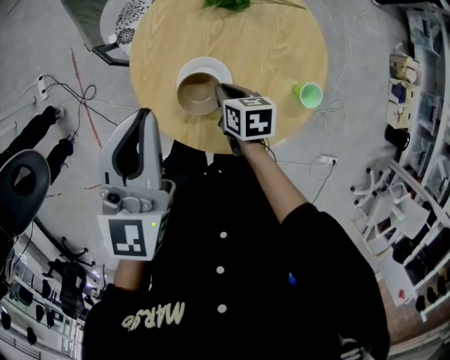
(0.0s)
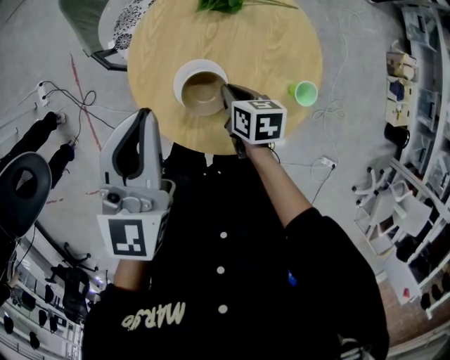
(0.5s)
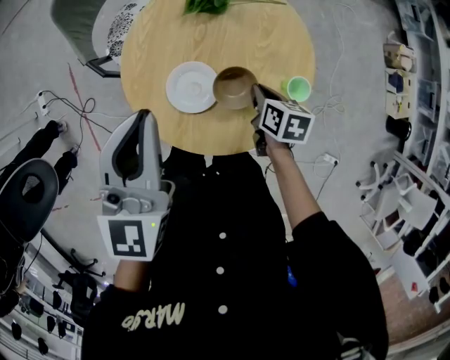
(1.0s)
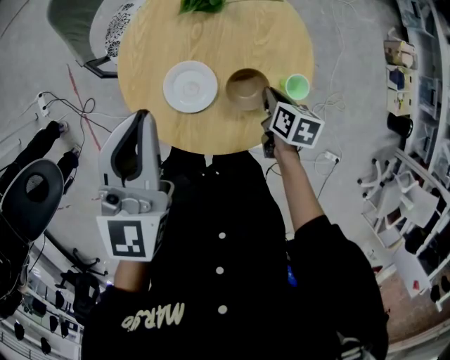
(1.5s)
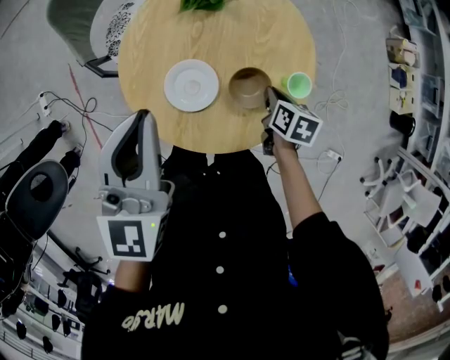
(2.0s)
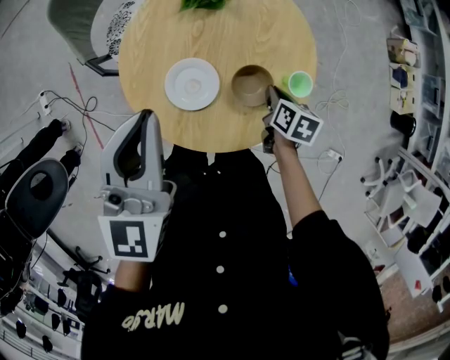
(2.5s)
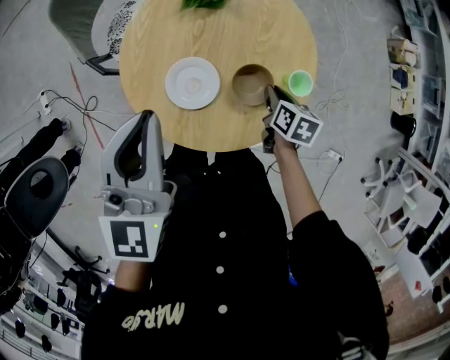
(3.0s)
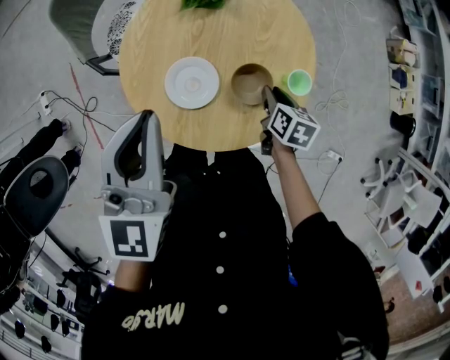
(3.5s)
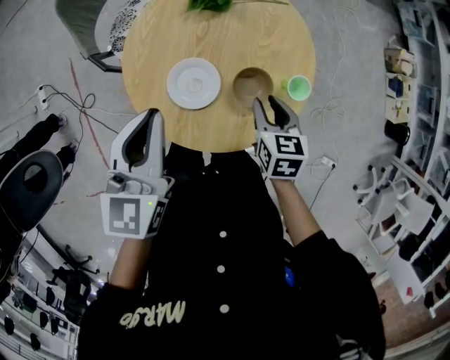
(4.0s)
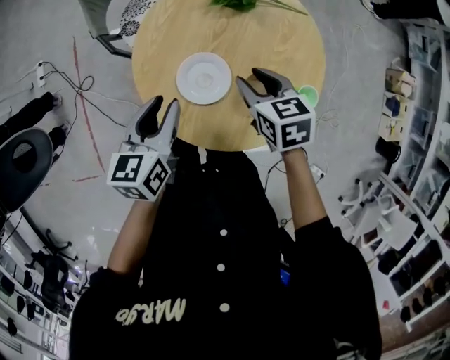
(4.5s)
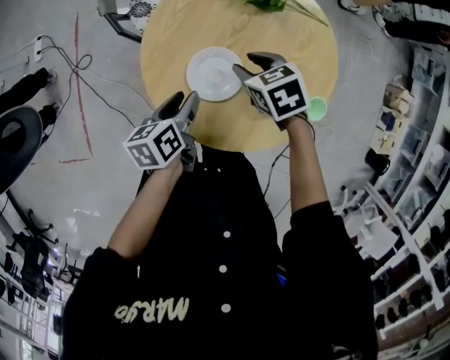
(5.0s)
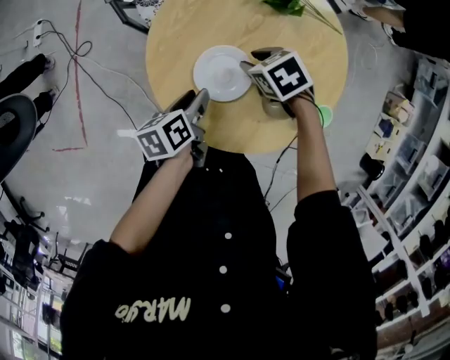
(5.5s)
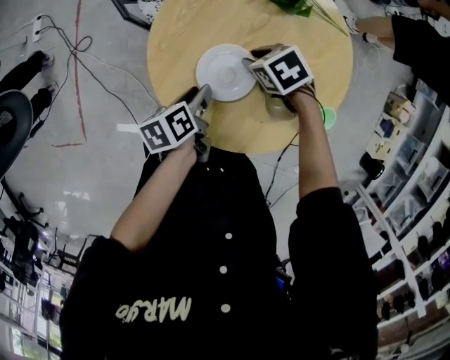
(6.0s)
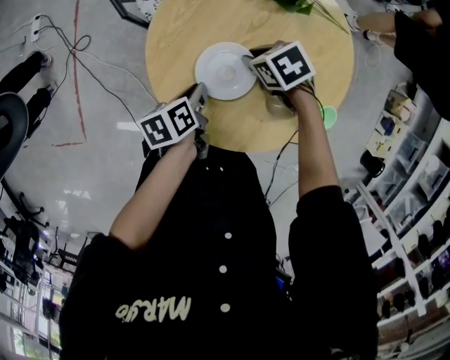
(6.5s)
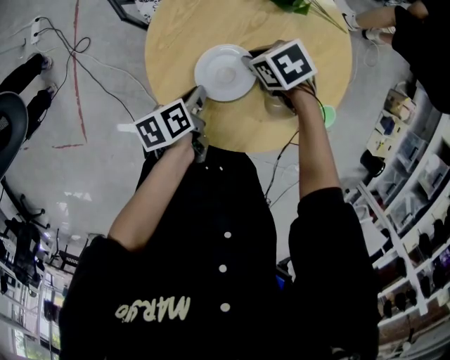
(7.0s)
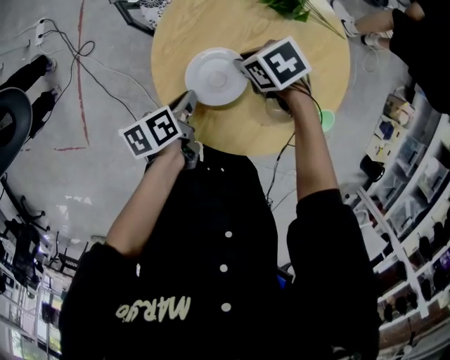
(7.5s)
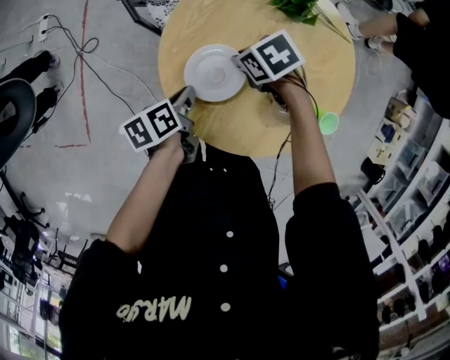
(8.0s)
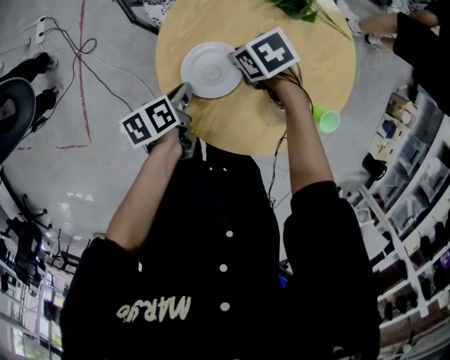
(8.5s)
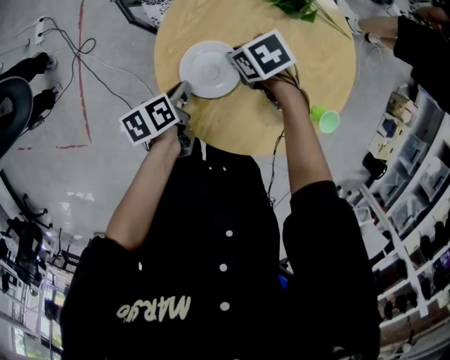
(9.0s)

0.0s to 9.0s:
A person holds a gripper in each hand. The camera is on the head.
0.0s to 2.0s: The right gripper is displaced to the right by about 20 cm, and turns by some 20 degrees.
2.0s to 4.5s: The left gripper shifts roughly 15 cm downward, rotates some 40 degrees, and opens its fingers; the right gripper goes approximately 15 cm to the left and upward, twists some 40 degrees counterclockwise, seen from behind, and opens up.
4.5s to 7.0s: Both grippers travel together downward, some 15 cm. The right gripper rotates approximately 40 degrees. Meanwhile the left gripper rotates around the line of its fingers by roughly 40 degrees, counterclockwise from behind, and closes up.
7.0s to 9.0s: The right gripper changes place by some 5 cm. The left gripper shifts by some 5 cm.

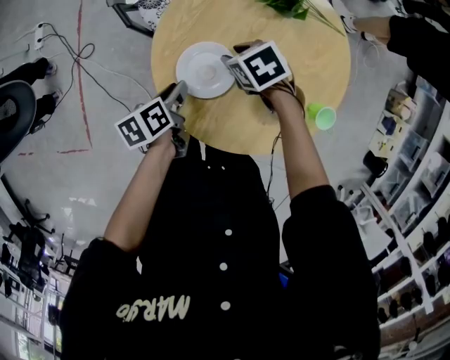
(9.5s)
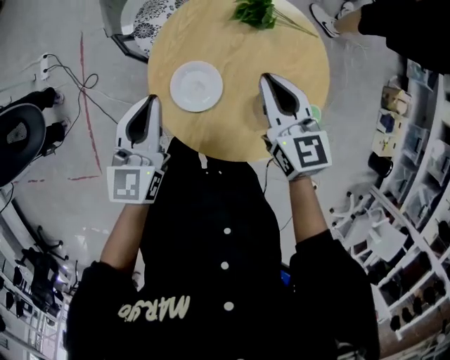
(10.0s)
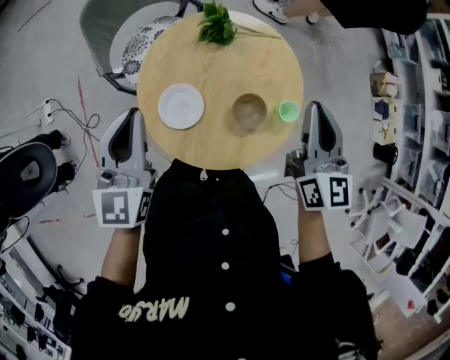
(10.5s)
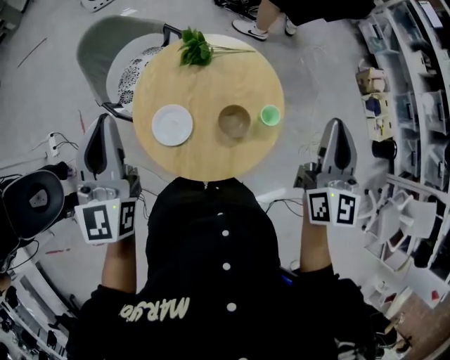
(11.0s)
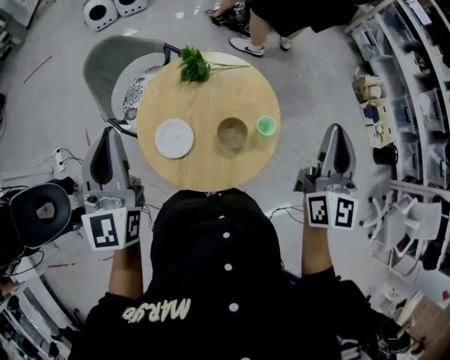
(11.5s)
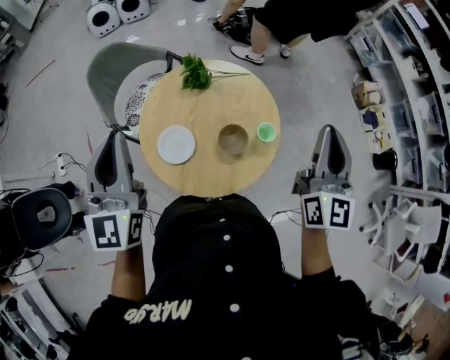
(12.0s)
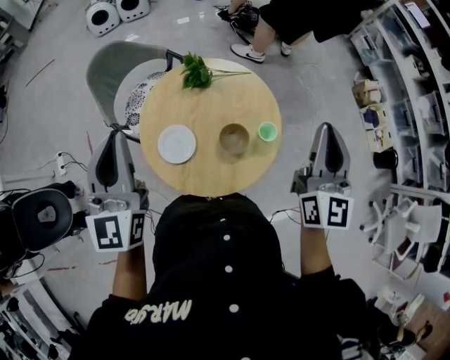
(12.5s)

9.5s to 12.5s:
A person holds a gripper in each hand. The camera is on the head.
9.5s to 11.0s: Both grippers move upward, approximately 50 cm. The left gripper tips its fingers upward by approximately 50 degrees, and closes its fingers; the right gripper tilts its fingers approximately 70 degrees upward, and closes its fingers.
11.0s to 12.5s: The grippers move only a little.

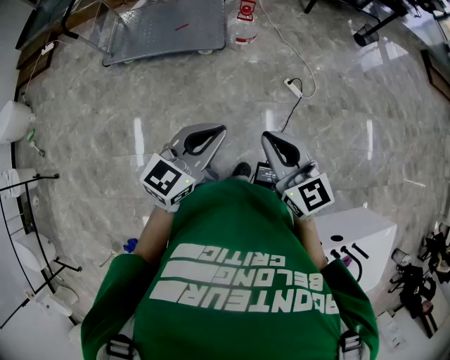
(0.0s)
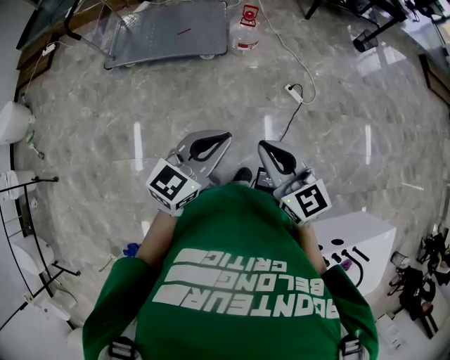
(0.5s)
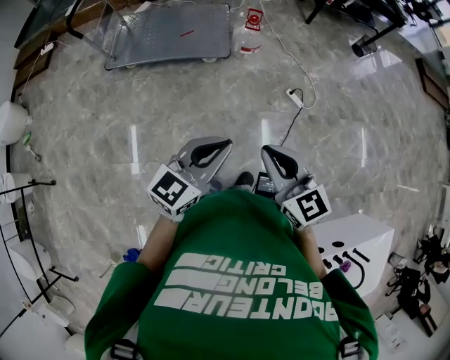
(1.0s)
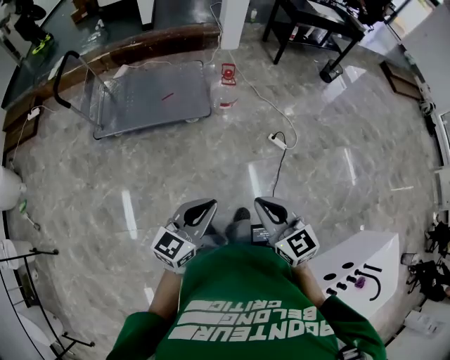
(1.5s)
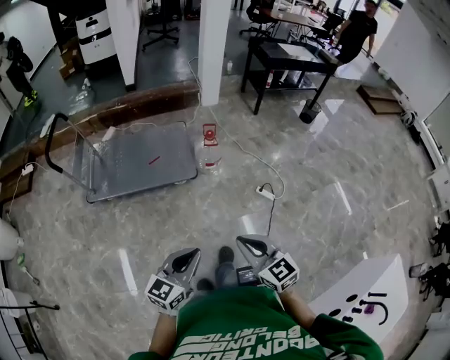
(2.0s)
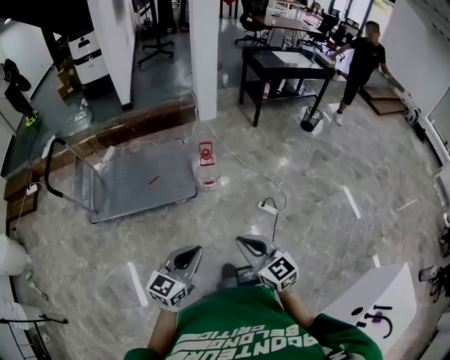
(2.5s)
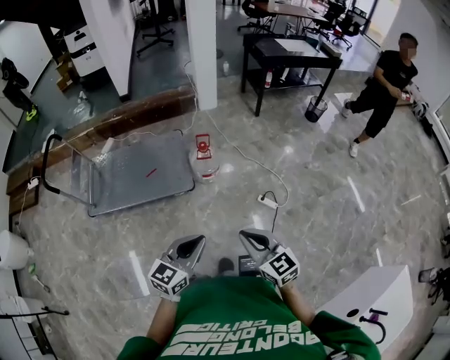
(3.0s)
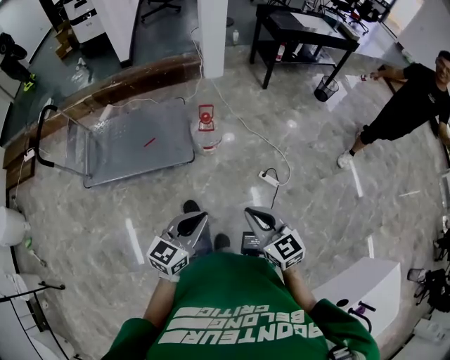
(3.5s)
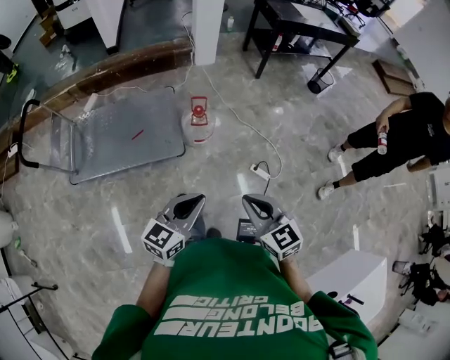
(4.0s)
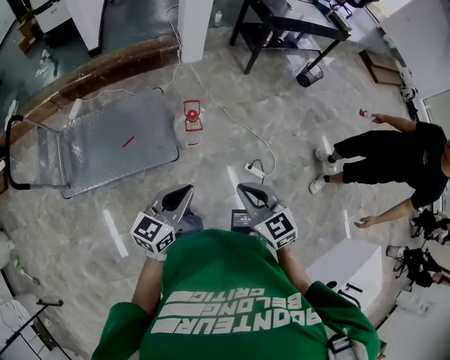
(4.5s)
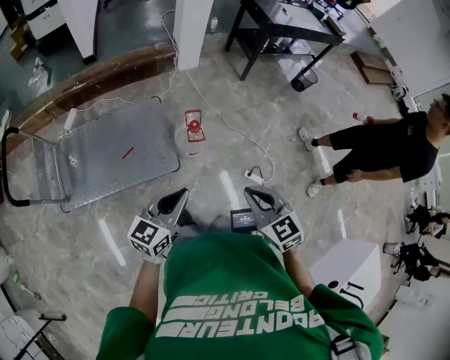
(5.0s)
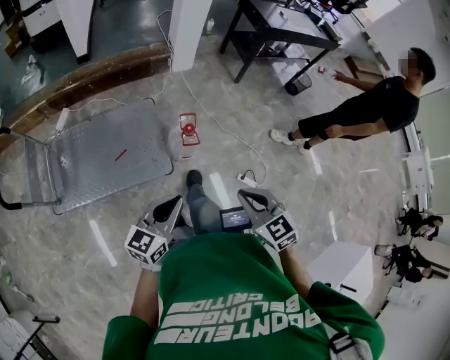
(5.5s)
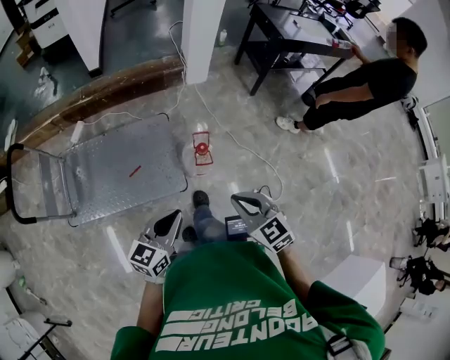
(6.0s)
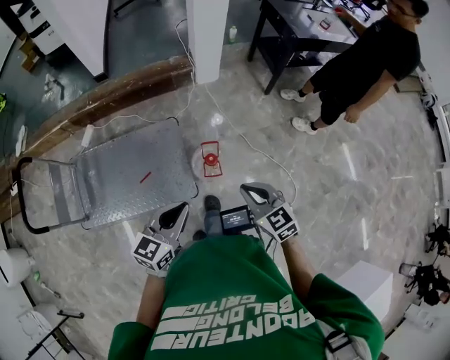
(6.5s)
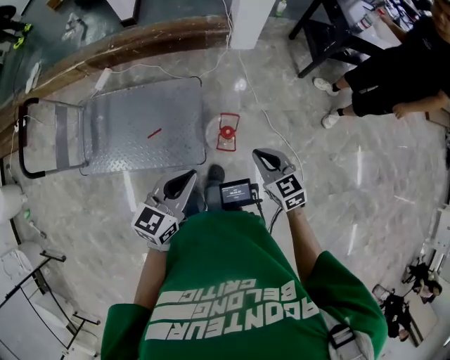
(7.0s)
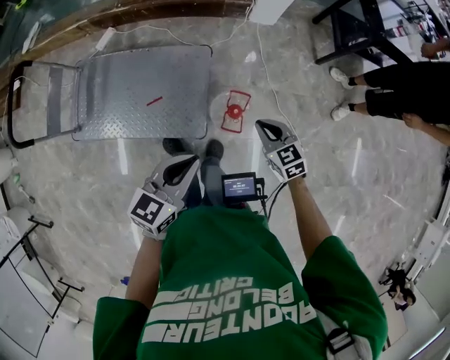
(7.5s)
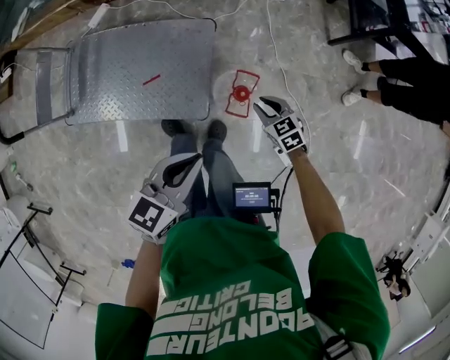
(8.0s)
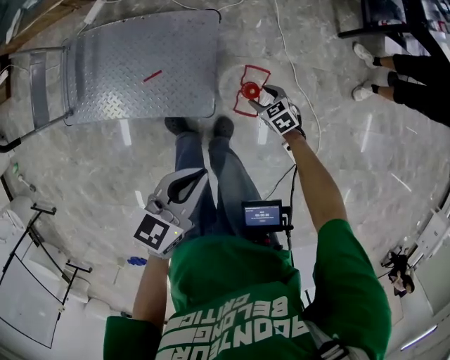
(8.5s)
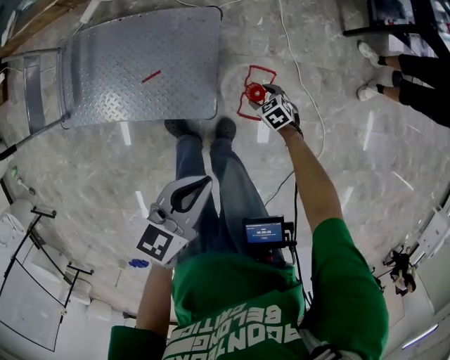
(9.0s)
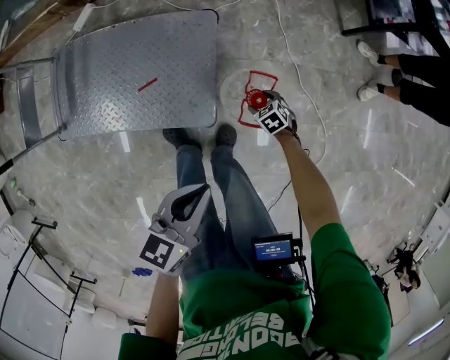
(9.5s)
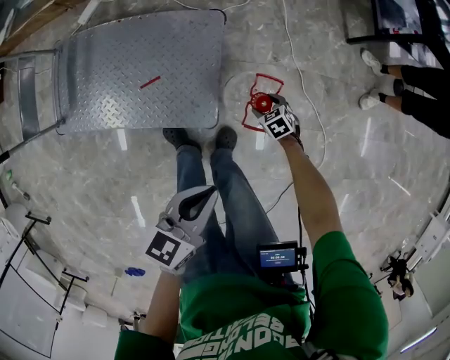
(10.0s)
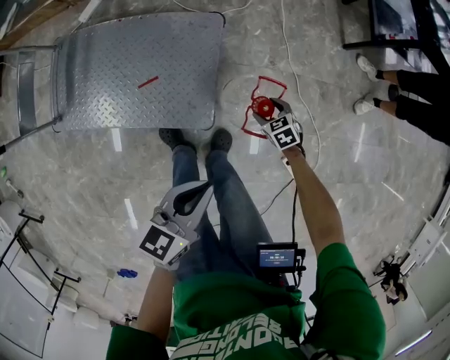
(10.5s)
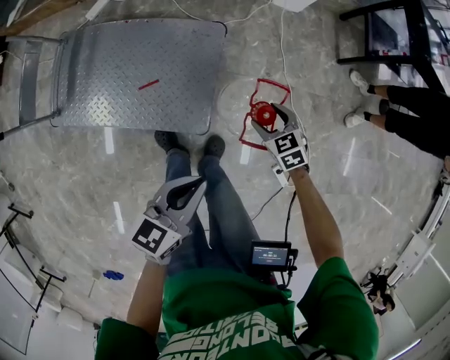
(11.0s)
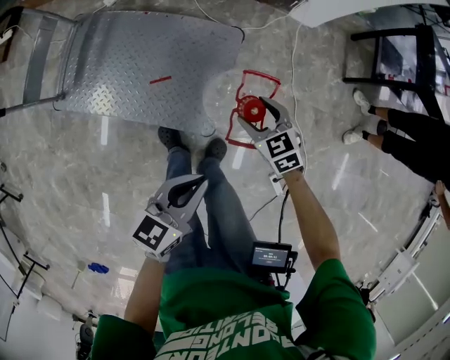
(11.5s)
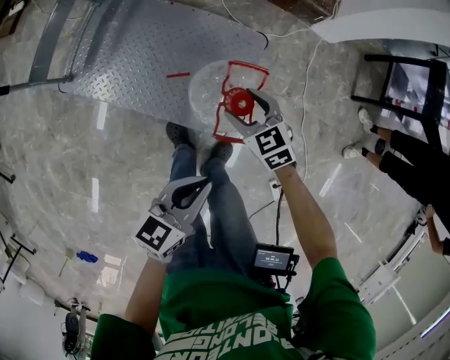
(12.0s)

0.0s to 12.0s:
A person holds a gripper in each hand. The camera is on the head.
0.0s to 2.0s: The left gripper goes some 15 cm to the left, forward and downward. Meanwhile the right gripper moves to the left and forward, approximately 15 cm.
2.0s to 4.0s: Both grippers travel together forward, roughly 25 cm.
4.0s to 6.0s: The grippers both shift forward and to the left by approximately 25 cm.
6.0s to 8.0s: The left gripper travels forward by roughly 15 cm; the right gripper travels downward and forward by approximately 40 cm, and changes its angle by about 30 degrees.
8.0s to 10.0s: The right gripper goes about 25 cm downward, and opens up. The left gripper is displaced downward by about 10 cm.
10.0s to 12.0s: The left gripper shifts roughly 10 cm to the left; the right gripper moves to the left and upward, approximately 35 cm, and swivels some 30 degrees.

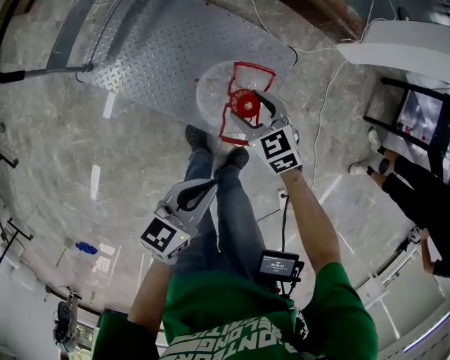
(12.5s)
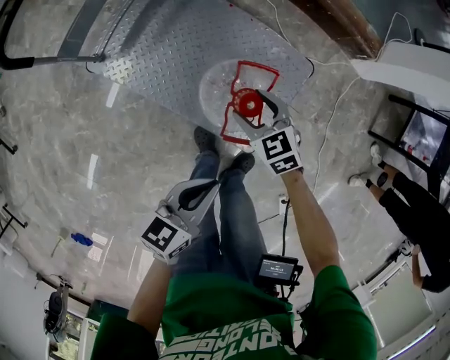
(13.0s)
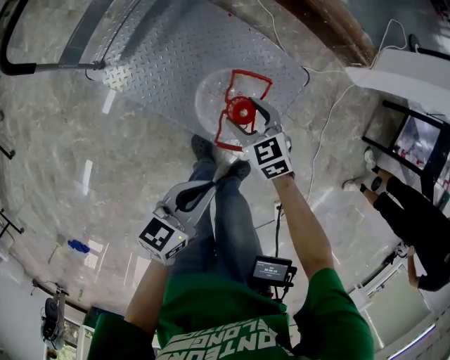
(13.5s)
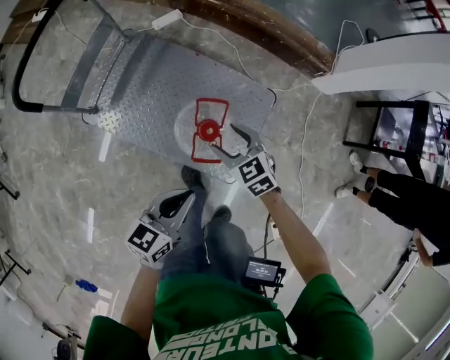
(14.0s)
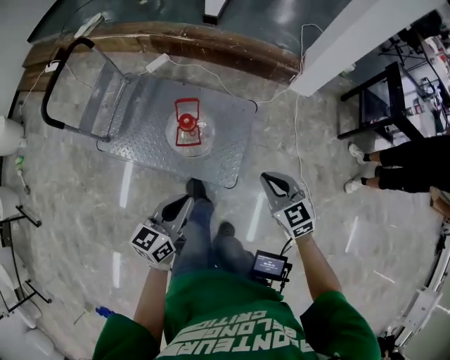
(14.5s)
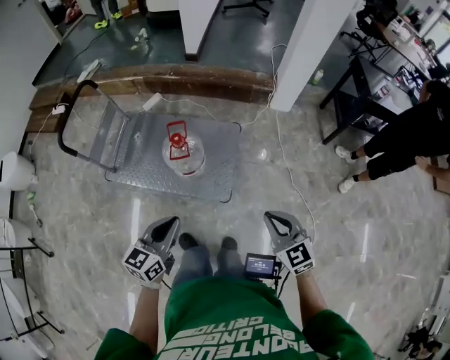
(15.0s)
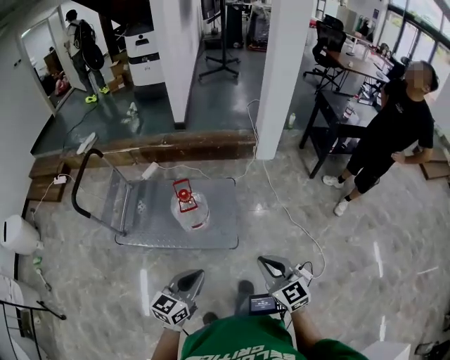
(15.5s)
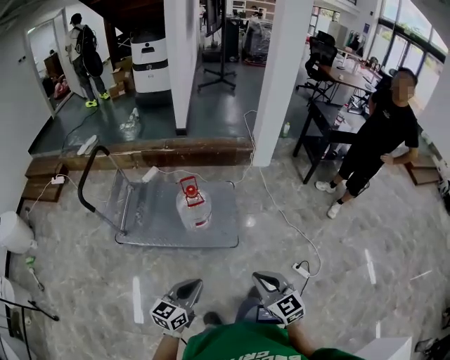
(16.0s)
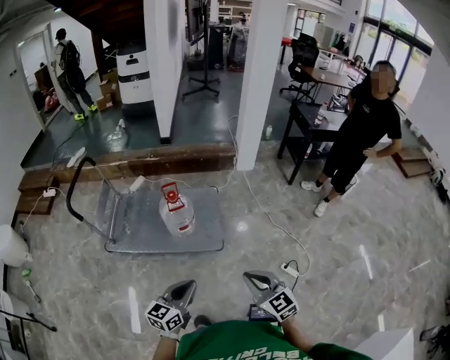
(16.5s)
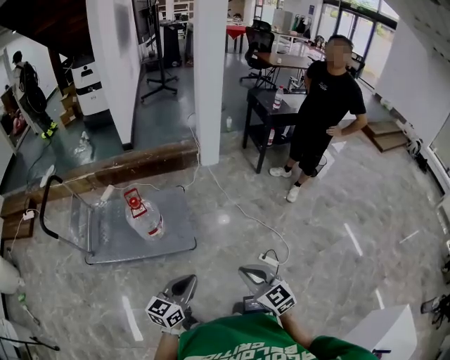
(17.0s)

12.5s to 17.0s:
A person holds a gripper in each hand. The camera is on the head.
12.5s to 14.5s: The left gripper heads upward and backward, covering roughly 15 cm, while the right gripper heads backward, upward and to the right, covering roughly 35 cm, changes its angle by about 20 degrees, and closes up.
14.5s to 17.0s: The left gripper goes about 35 cm backward and to the right, and rotates roughly 30 degrees. Meanwhile the right gripper heads backward, covering about 40 cm, and turns by roughly 30 degrees.
